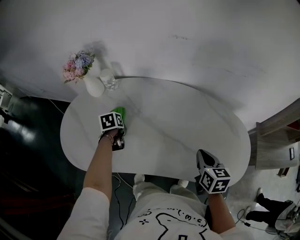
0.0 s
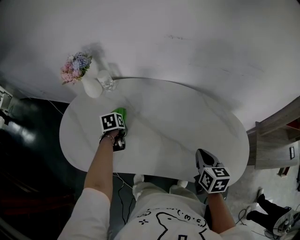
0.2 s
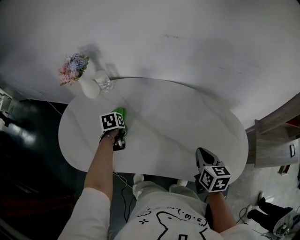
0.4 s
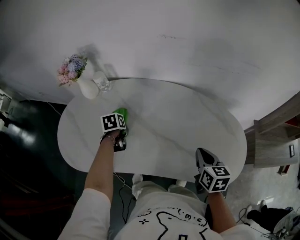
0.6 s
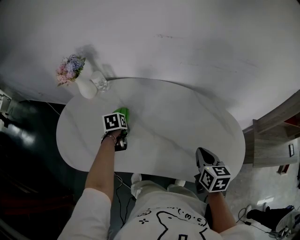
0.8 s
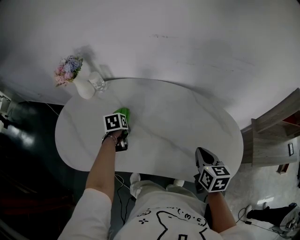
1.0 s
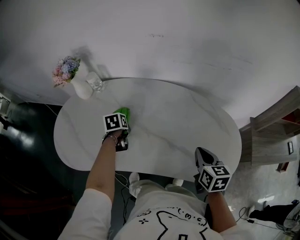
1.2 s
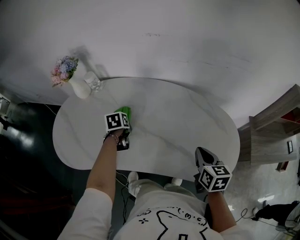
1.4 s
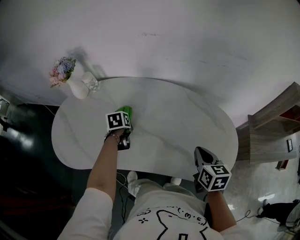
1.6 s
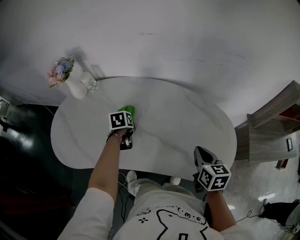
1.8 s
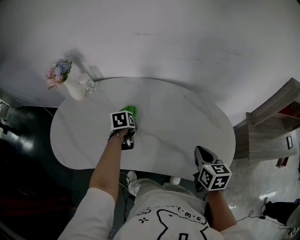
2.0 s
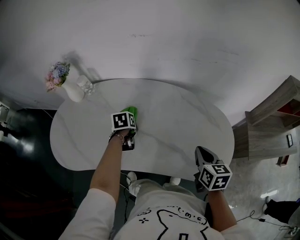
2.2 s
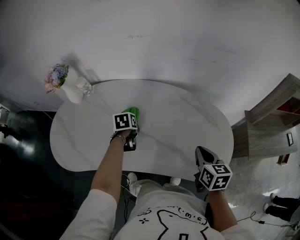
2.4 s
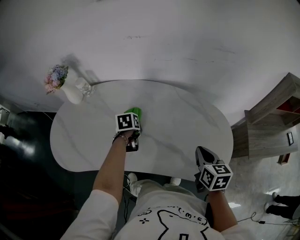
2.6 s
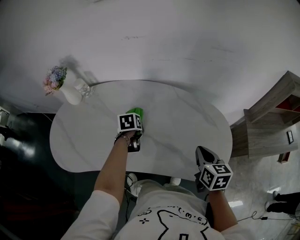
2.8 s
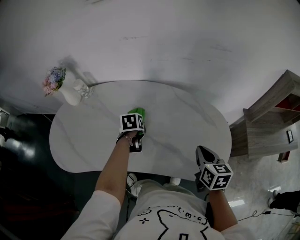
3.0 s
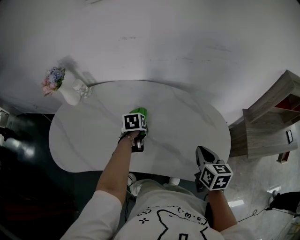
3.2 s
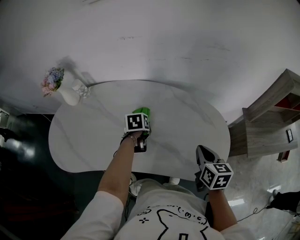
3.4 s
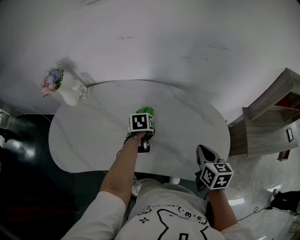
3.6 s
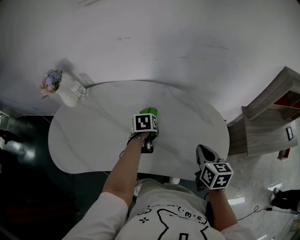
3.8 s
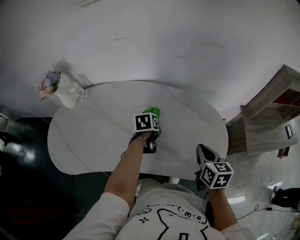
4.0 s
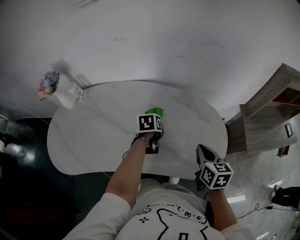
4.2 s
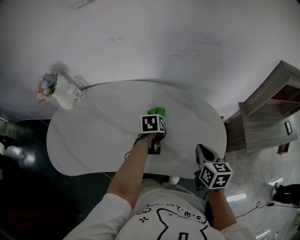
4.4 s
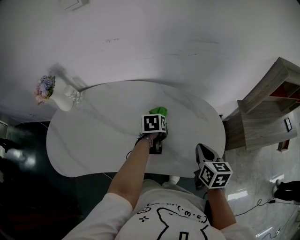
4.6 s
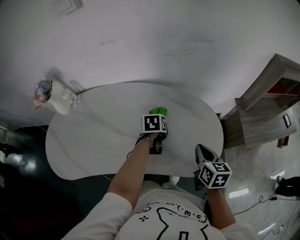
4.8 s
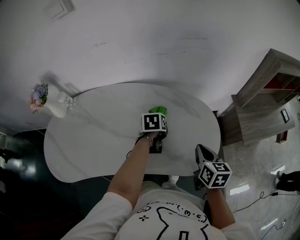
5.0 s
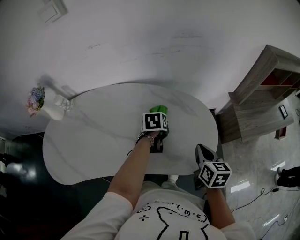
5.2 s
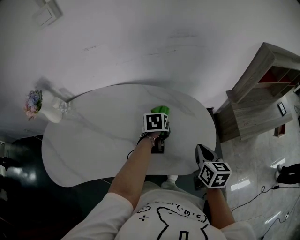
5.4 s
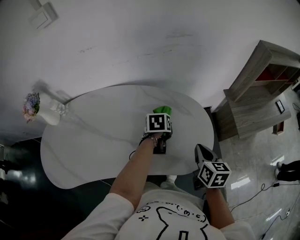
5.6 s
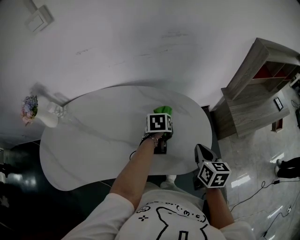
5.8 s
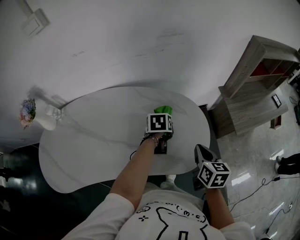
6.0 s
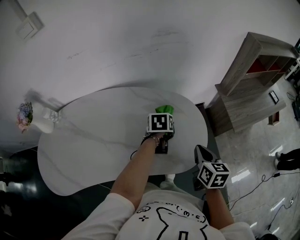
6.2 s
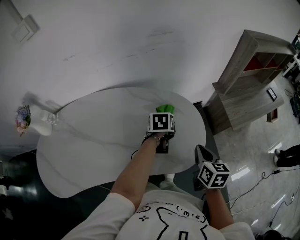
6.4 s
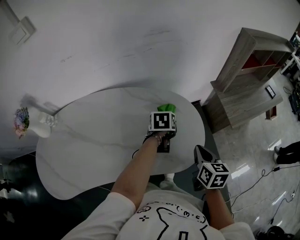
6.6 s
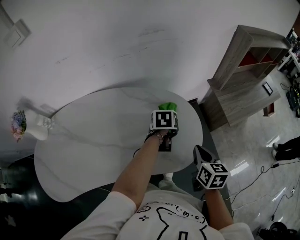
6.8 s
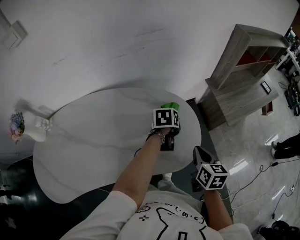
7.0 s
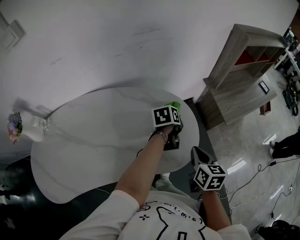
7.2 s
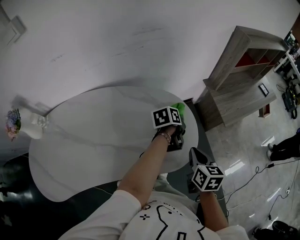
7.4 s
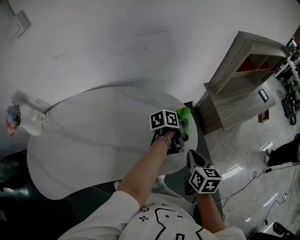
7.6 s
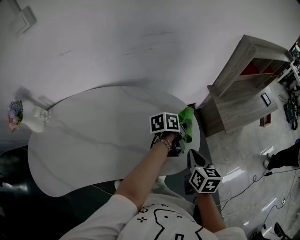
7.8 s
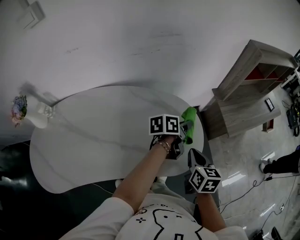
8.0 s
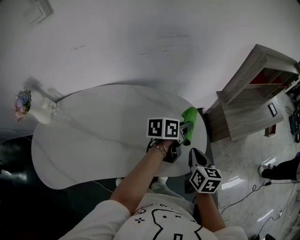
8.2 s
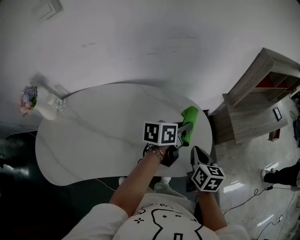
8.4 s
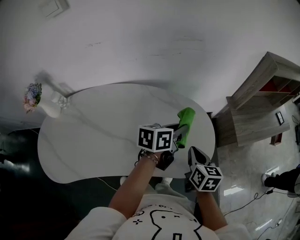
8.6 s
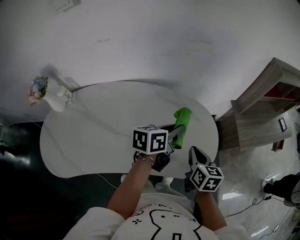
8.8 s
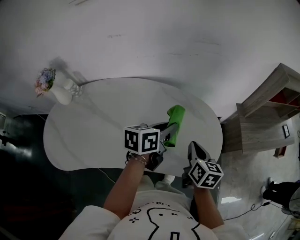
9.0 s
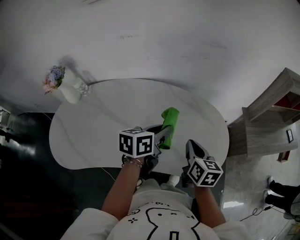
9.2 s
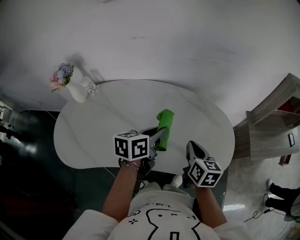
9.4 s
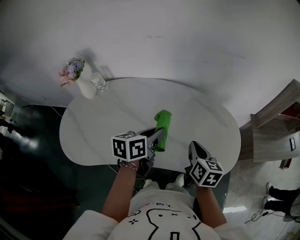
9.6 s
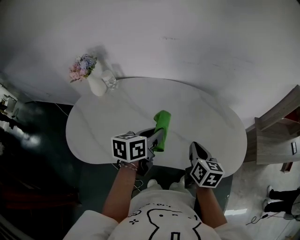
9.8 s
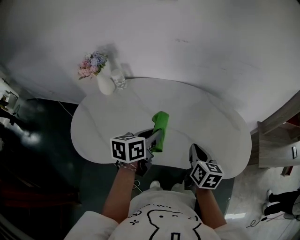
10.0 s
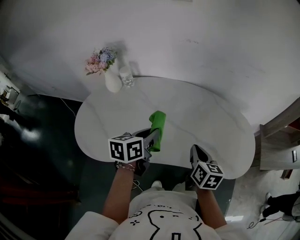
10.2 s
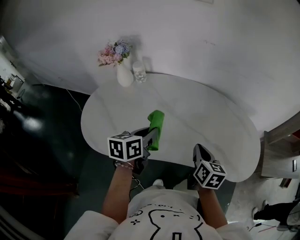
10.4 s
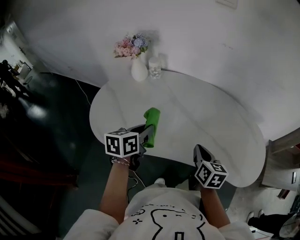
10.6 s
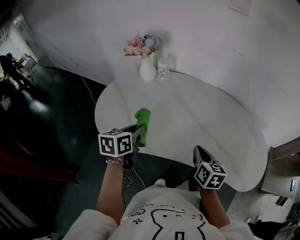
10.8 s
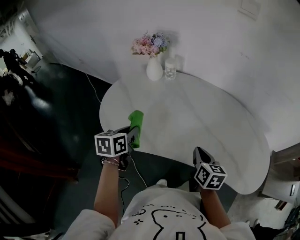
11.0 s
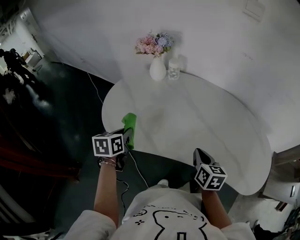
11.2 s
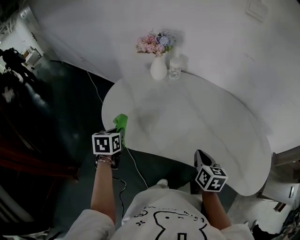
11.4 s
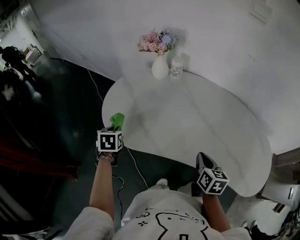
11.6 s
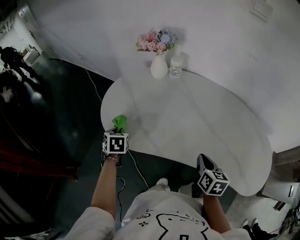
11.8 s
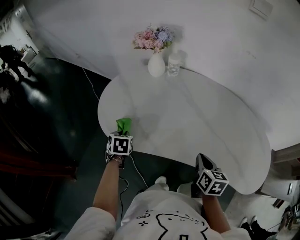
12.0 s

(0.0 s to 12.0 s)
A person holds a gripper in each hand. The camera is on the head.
0.0 s - 1.6 s: The left gripper moves to the right, some 15 cm. Meanwhile the right gripper travels to the right by roughly 10 cm.
1.6 s - 3.0 s: The right gripper travels to the right by roughly 5 cm. Meanwhile the left gripper heads to the right, covering roughly 10 cm.
3.0 s - 4.4 s: The left gripper shifts approximately 15 cm to the right.
4.4 s - 6.0 s: The left gripper shifts some 15 cm to the right. The right gripper travels to the right by some 10 cm.
6.0 s - 7.6 s: The left gripper shifts about 15 cm to the right, and swivels some 40 degrees.
7.6 s - 9.0 s: The right gripper moves to the left, some 15 cm. The left gripper goes some 25 cm to the left, upward and backward, and rotates approximately 30 degrees.
9.0 s - 10.4 s: The left gripper heads to the left and backward, covering some 40 cm, and rotates about 30 degrees. Meanwhile the right gripper shifts approximately 30 cm to the left.
10.4 s - 12.0 s: The right gripper ends up approximately 10 cm from where it was. Meanwhile the left gripper moves roughly 35 cm, and changes its angle by roughly 50 degrees.

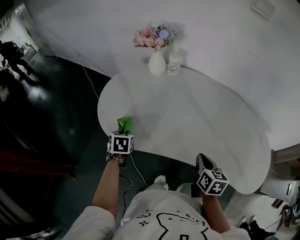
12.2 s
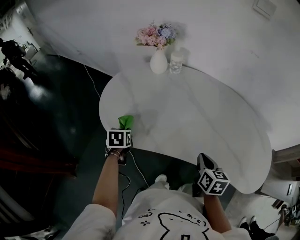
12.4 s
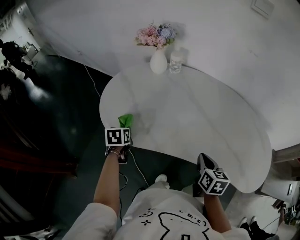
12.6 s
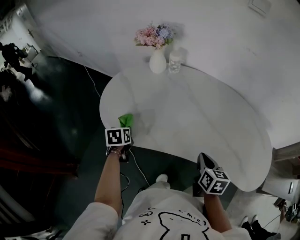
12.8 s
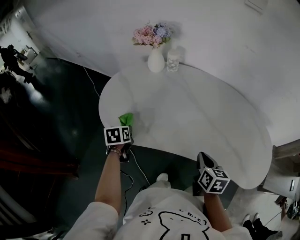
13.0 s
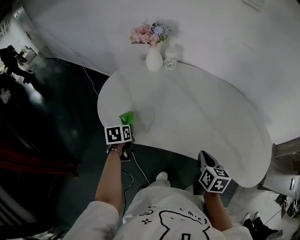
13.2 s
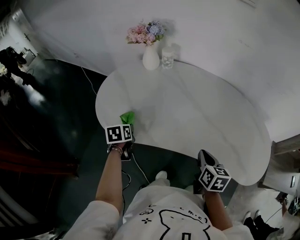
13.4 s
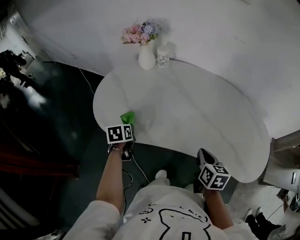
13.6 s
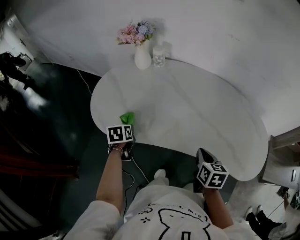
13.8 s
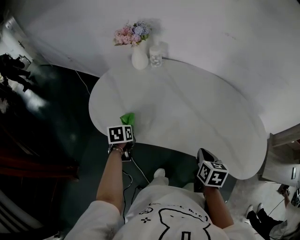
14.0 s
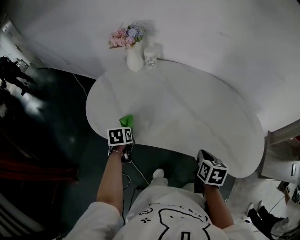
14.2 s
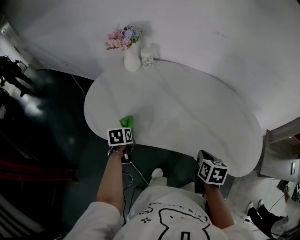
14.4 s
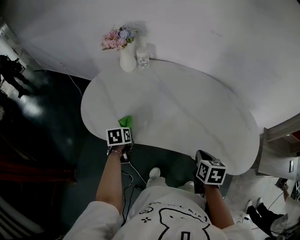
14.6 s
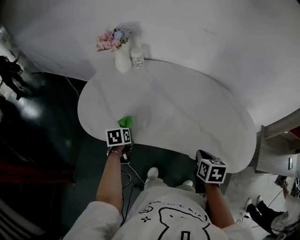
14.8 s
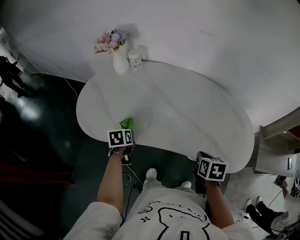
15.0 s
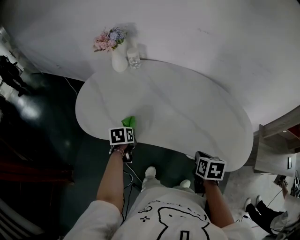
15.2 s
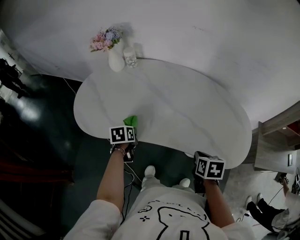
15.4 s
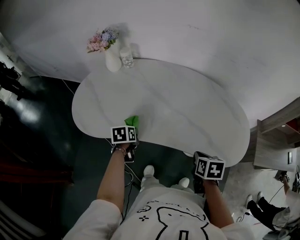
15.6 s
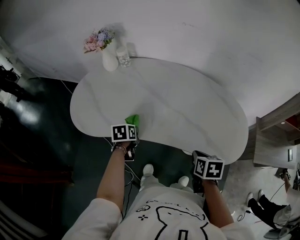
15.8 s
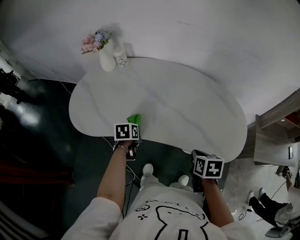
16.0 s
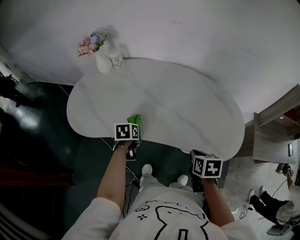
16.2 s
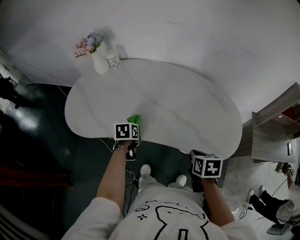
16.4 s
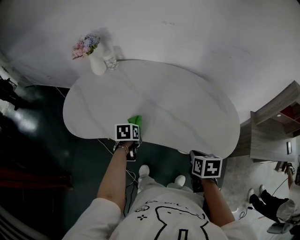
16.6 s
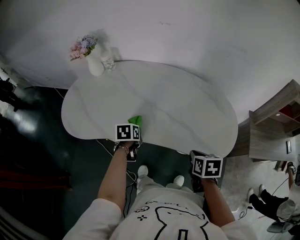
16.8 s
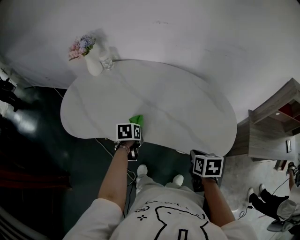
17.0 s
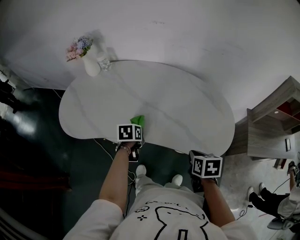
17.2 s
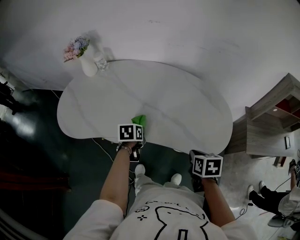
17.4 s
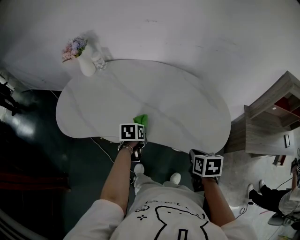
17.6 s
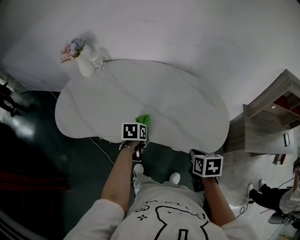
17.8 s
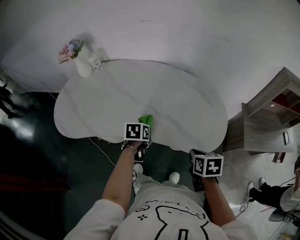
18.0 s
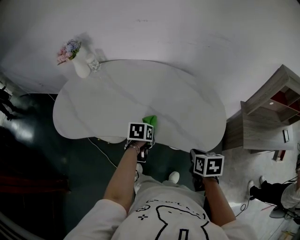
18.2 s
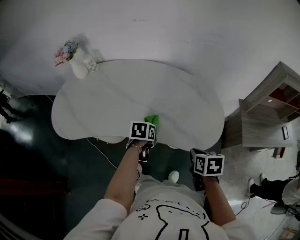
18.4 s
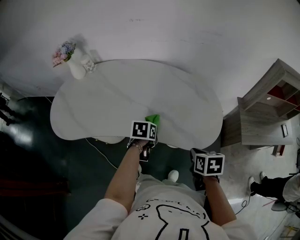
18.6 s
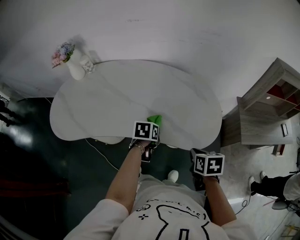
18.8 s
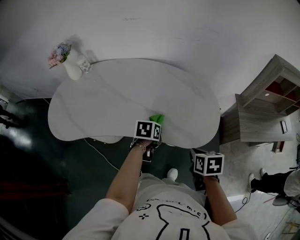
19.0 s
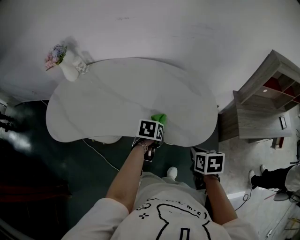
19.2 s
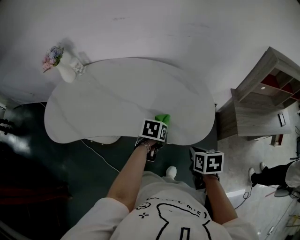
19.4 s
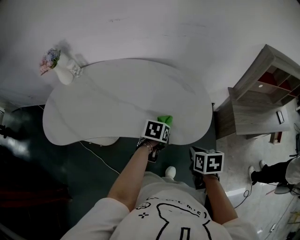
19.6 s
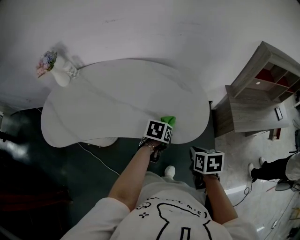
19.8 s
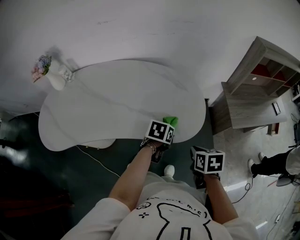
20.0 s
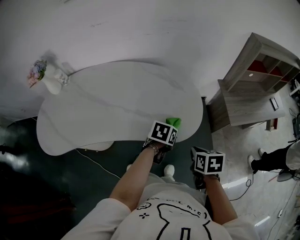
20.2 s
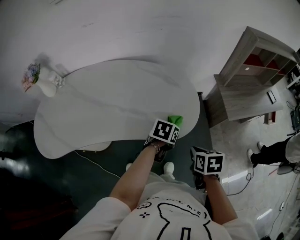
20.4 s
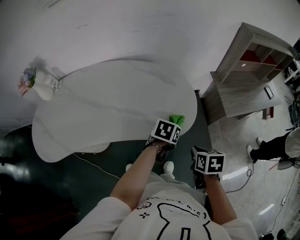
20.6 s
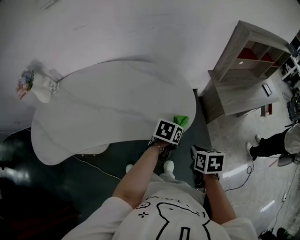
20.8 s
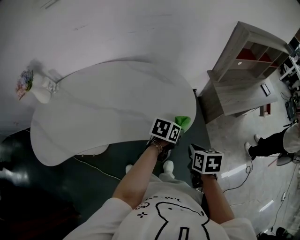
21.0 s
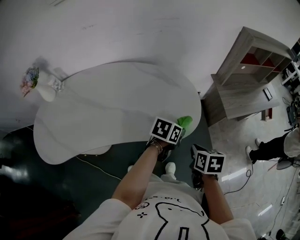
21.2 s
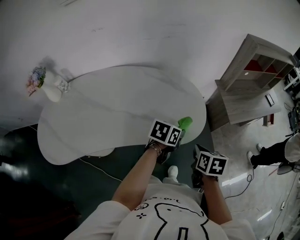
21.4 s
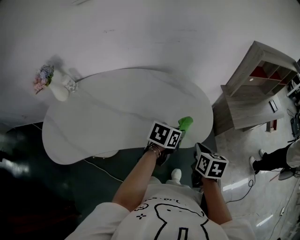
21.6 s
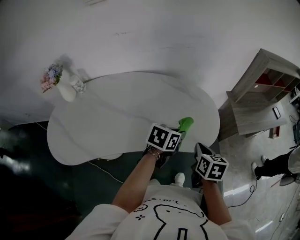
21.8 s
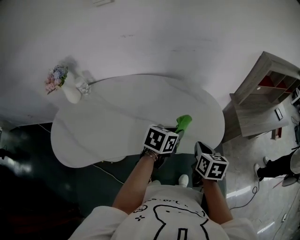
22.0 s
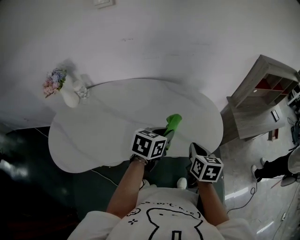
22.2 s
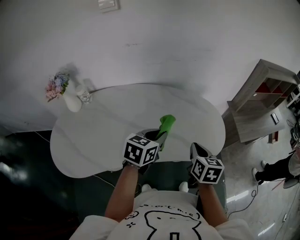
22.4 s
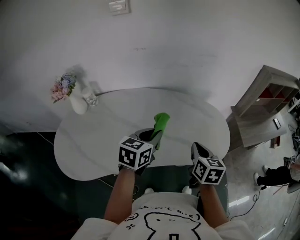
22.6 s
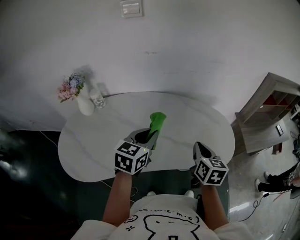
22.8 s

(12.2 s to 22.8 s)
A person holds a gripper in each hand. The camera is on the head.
12.2 s - 13.8 s: Both grippers travel together to the right, roughly 5 cm.
13.8 s - 15.2 s: Both grippers move to the right, about 10 cm.
15.2 s - 16.8 s: The left gripper travels to the right by about 15 cm. The right gripper is displaced to the right by some 10 cm.
16.8 s - 18.2 s: The right gripper goes approximately 5 cm to the right, while the left gripper moves to the right, about 15 cm.
18.2 s - 19.8 s: The left gripper goes roughly 20 cm to the right, and turns by approximately 20 degrees. Meanwhile the right gripper travels to the right by roughly 10 cm.
19.8 s - 21.2 s: The left gripper shifts some 10 cm to the right, and turns by some 20 degrees.
21.2 s - 22.8 s: Both grippers travel together to the left and upward, about 35 cm. The right gripper changes its angle by roughly 30 degrees, while the left gripper changes its angle by roughly 40 degrees.

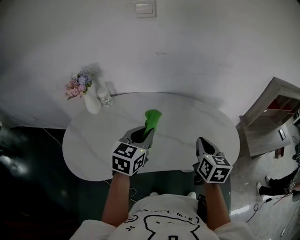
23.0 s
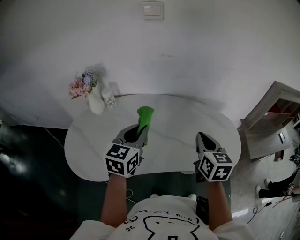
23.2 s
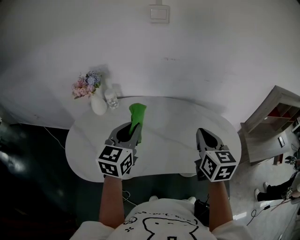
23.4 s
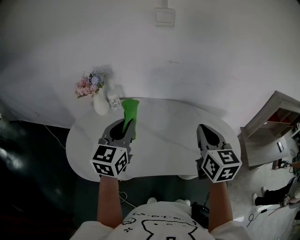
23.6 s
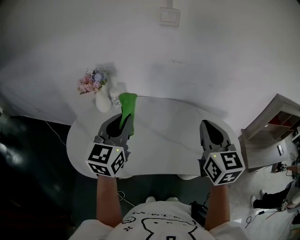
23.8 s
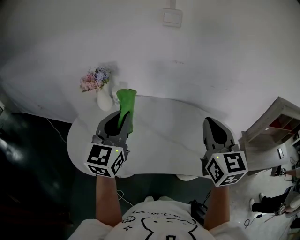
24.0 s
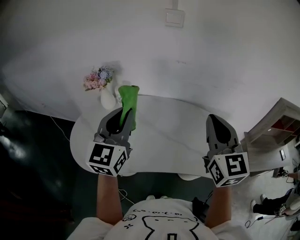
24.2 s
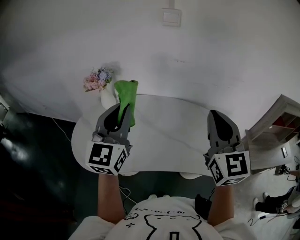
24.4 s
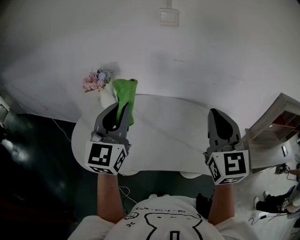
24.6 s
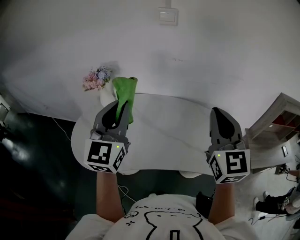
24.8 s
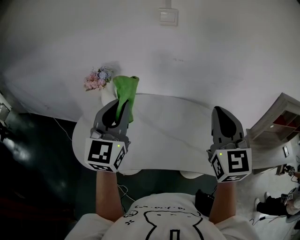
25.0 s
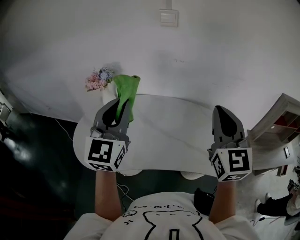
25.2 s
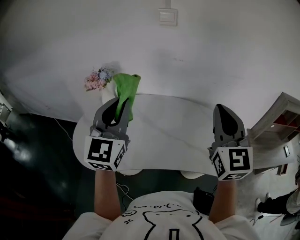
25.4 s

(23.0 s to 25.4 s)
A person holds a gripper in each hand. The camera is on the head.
23.0 s - 24.2 s: The right gripper shifts roughly 20 cm upward, and turns by about 40 degrees. The left gripper travels upward and to the left by some 20 cm, and swivels roughly 30 degrees.
24.2 s - 25.4 s: The grippers move only a little.
